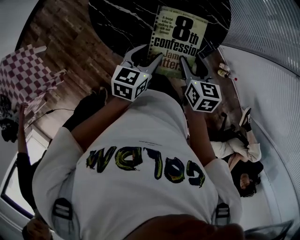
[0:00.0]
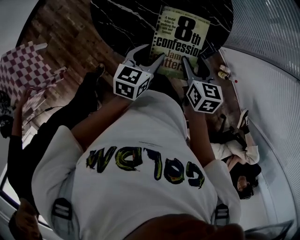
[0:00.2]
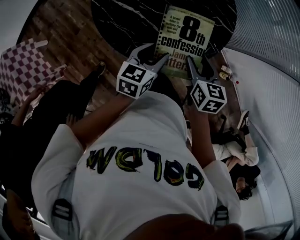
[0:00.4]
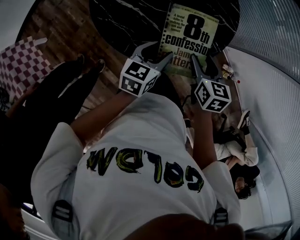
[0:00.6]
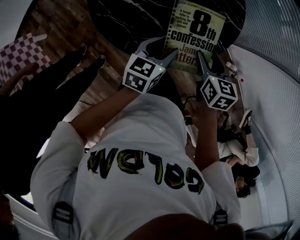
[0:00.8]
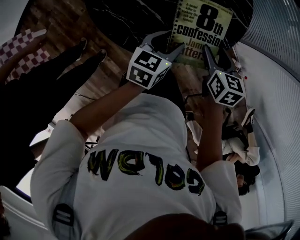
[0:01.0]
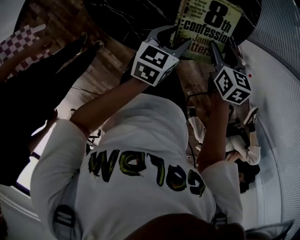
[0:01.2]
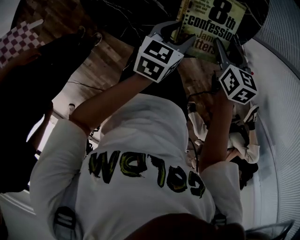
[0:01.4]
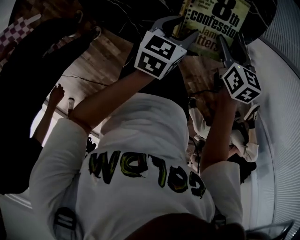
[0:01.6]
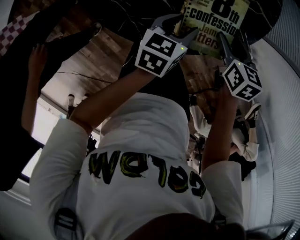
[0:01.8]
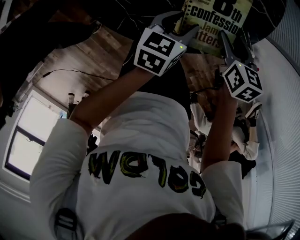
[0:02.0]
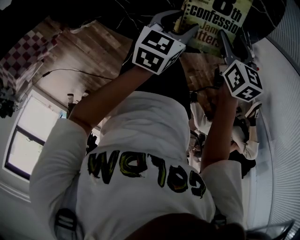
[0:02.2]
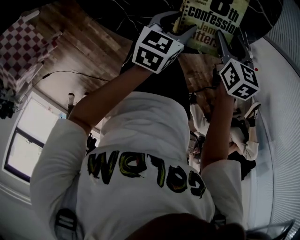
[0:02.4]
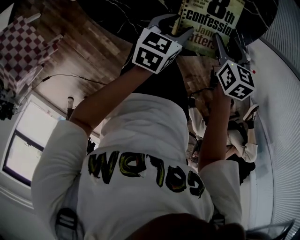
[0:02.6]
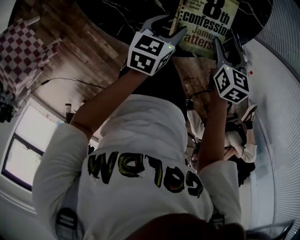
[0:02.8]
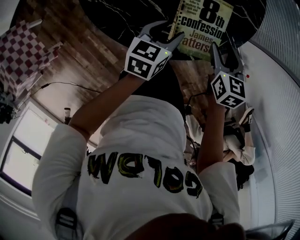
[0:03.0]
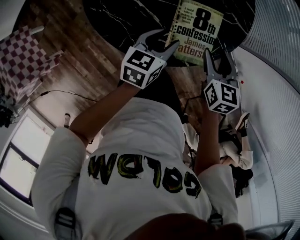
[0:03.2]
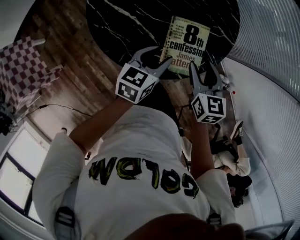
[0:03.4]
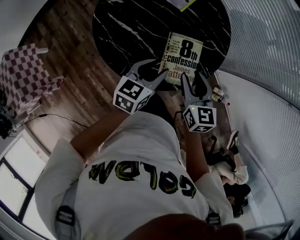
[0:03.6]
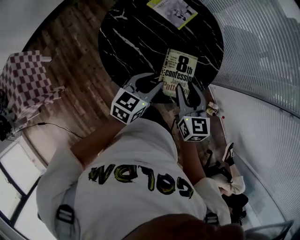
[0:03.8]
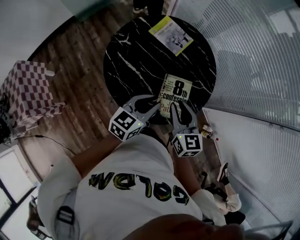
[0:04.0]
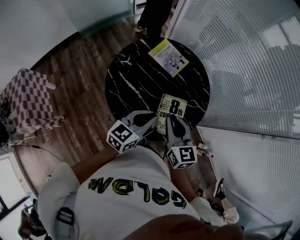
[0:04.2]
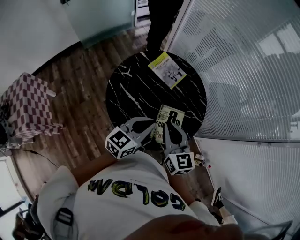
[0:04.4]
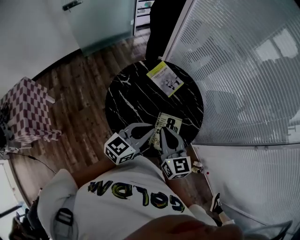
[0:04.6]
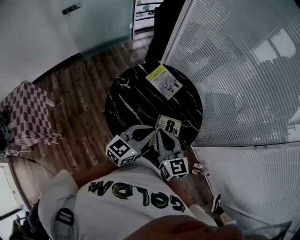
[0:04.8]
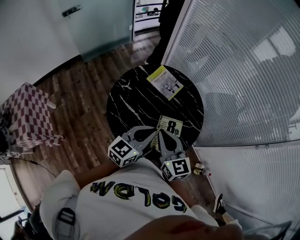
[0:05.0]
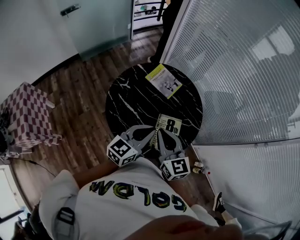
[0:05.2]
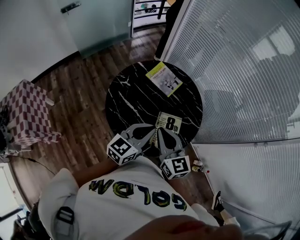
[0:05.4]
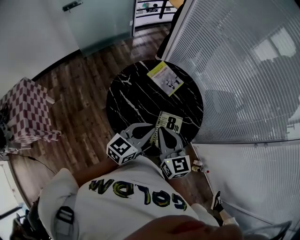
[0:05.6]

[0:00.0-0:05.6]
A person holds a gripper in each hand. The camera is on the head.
0:00.0 to 0:01.4: The grippers make only small movements.
0:01.4 to 0:02.8: The left gripper ends up some 5 cm from where it was.
0:02.8 to 0:04.2: The left gripper travels upward by roughly 30 cm, turns by about 30 degrees, and closes, while the right gripper is displaced upward and to the left by approximately 35 cm, tips its fingers upward by roughly 30 degrees, and closes its fingers.
0:04.2 to 0:05.6: Both grippers travel together upward, approximately 5 cm.

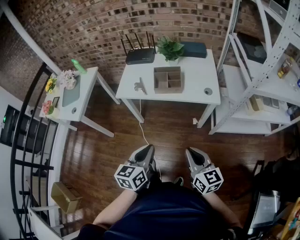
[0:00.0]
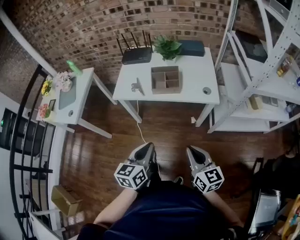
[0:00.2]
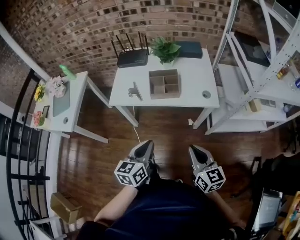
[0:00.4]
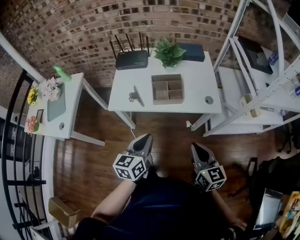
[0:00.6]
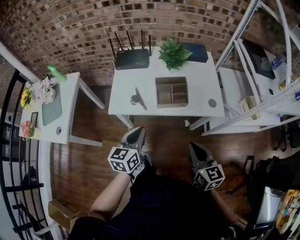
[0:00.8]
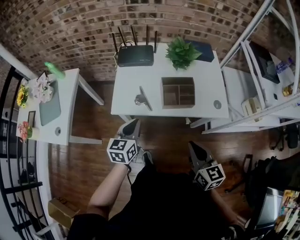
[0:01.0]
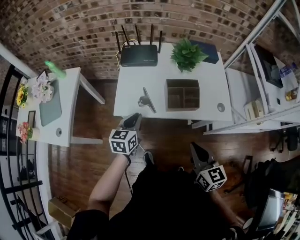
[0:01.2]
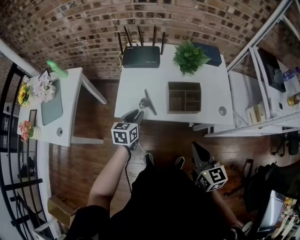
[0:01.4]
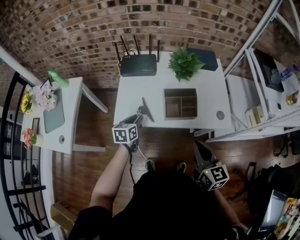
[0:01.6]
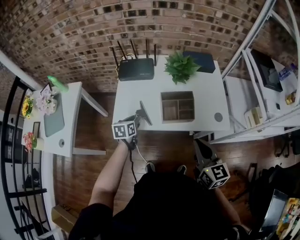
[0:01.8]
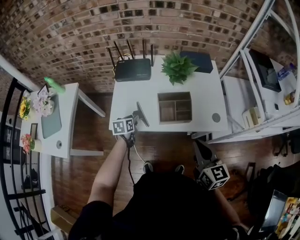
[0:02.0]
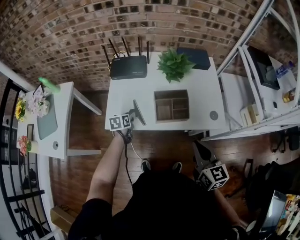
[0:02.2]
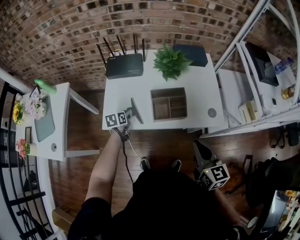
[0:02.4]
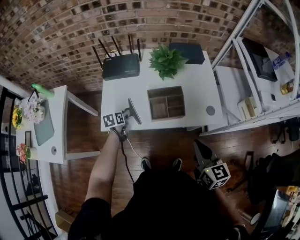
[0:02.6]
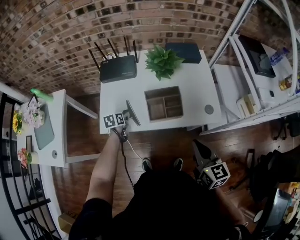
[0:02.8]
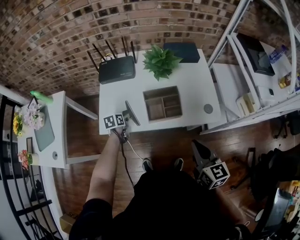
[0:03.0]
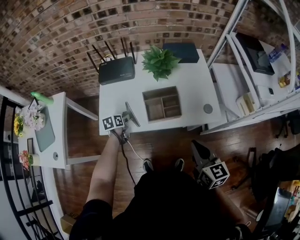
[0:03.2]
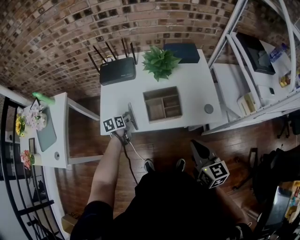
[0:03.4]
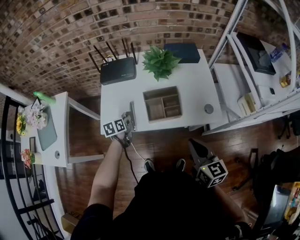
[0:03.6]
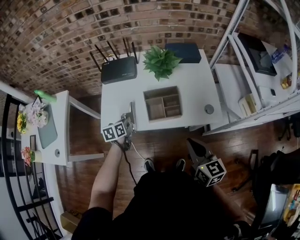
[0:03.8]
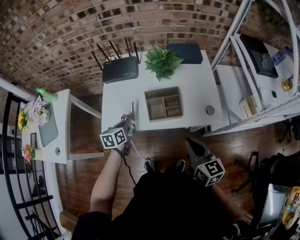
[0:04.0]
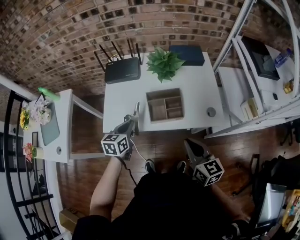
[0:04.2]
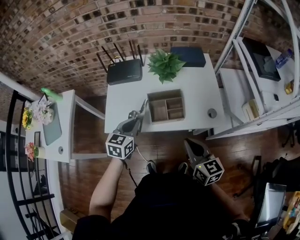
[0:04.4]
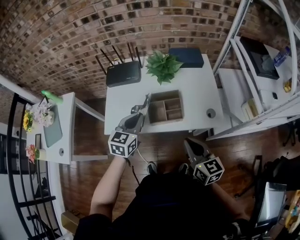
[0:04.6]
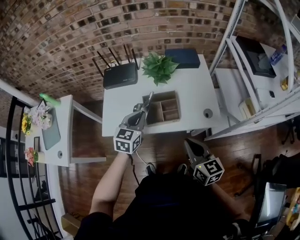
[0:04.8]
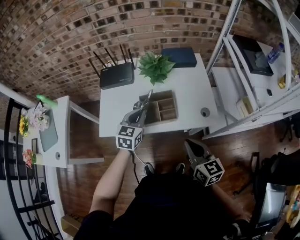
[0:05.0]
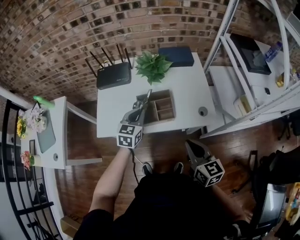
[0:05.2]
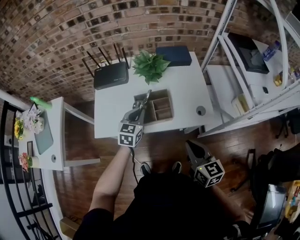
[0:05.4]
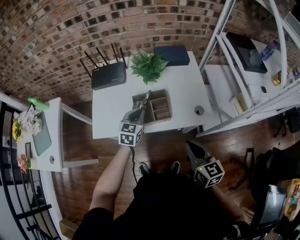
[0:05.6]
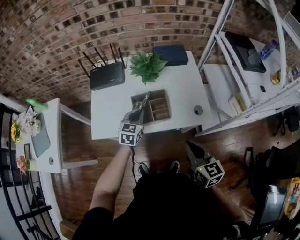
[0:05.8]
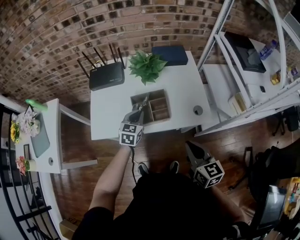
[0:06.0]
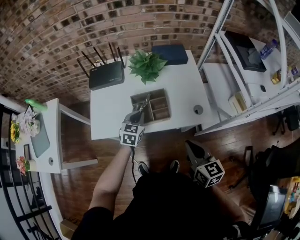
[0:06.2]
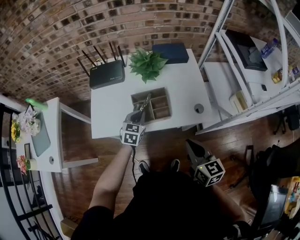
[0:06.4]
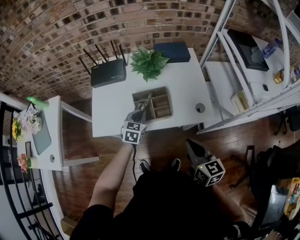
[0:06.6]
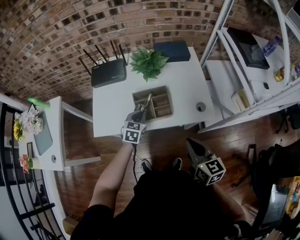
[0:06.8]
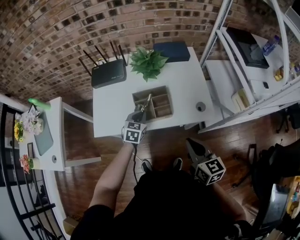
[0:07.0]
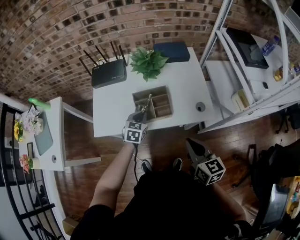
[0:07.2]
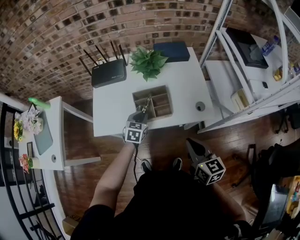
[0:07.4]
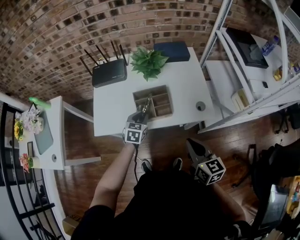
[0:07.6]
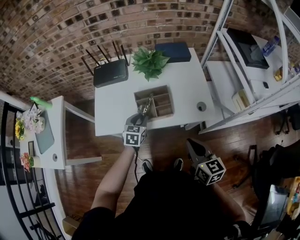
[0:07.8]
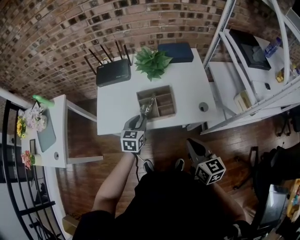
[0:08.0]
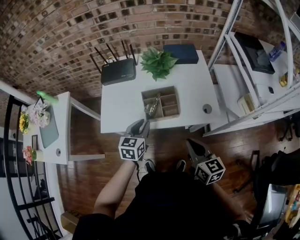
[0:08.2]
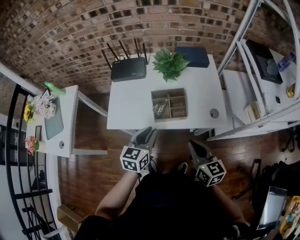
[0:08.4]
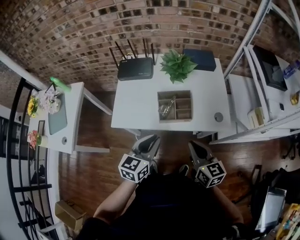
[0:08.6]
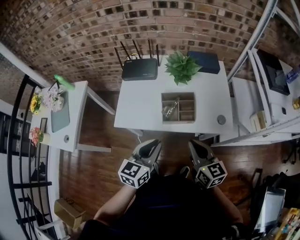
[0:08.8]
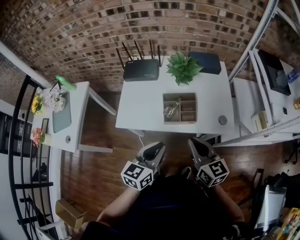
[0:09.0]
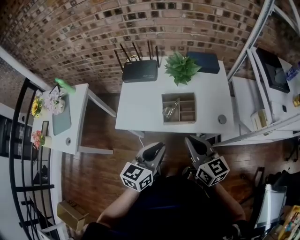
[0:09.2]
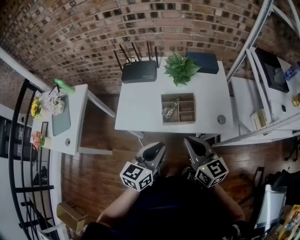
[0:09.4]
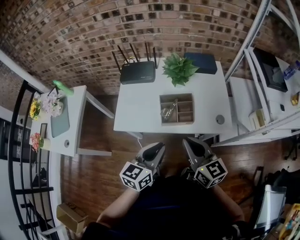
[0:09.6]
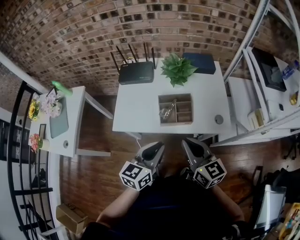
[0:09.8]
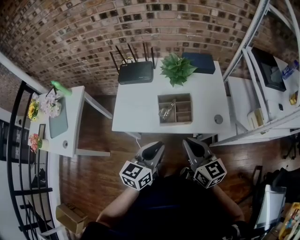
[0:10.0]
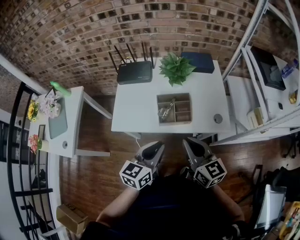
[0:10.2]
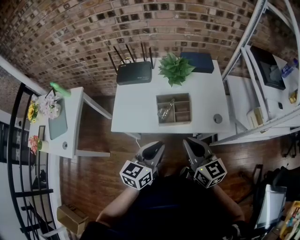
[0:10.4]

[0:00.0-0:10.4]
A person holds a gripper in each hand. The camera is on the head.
0:00.0 to 0:01.4: The right gripper heads forward and to the left, covering approximately 25 cm. The left gripper moves forward and to the left, approximately 40 cm, and opens.
0:01.4 to 0:03.0: The left gripper travels downward and forward by approximately 15 cm, and swivels roughly 30 degrees; the right gripper heads to the right, covering about 10 cm.
0:03.0 to 0:04.4: The left gripper goes approximately 20 cm upward and to the right, swivels some 40 degrees, and closes its fingers.
0:04.4 to 0:06.0: The left gripper heads to the right, downward and forward, covering roughly 15 cm, while the right gripper is displaced to the right by approximately 5 cm.
0:06.0 to 0:07.4: The grippers move only a little.
0:07.4 to 0:09.0: The right gripper heads to the left, covering roughly 10 cm. Meanwhile the left gripper moves upward and backward, about 25 cm, and changes its angle by some 30 degrees.
0:09.0 to 0:10.4: There are only small adjustments of the grippers.

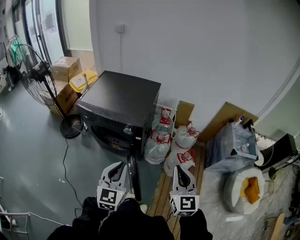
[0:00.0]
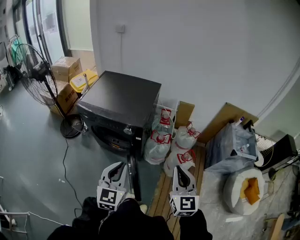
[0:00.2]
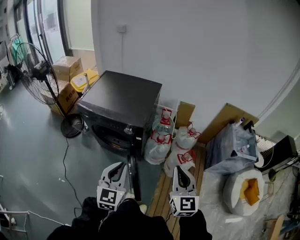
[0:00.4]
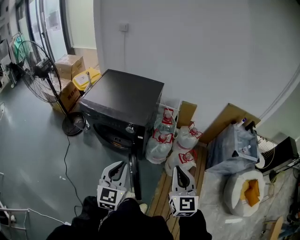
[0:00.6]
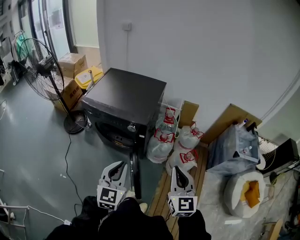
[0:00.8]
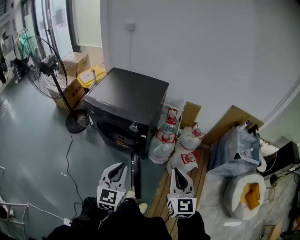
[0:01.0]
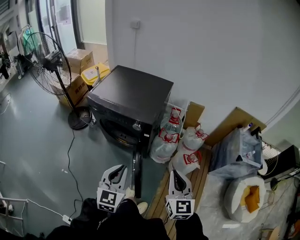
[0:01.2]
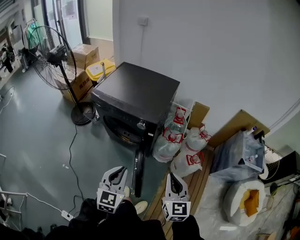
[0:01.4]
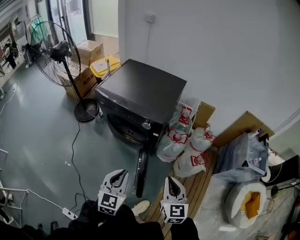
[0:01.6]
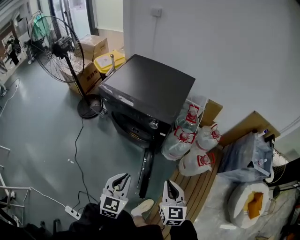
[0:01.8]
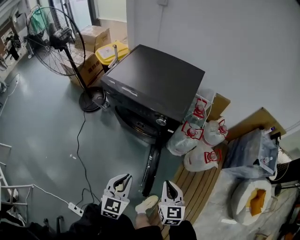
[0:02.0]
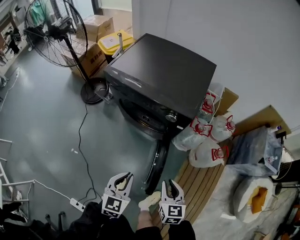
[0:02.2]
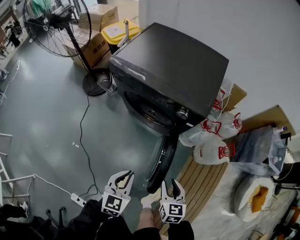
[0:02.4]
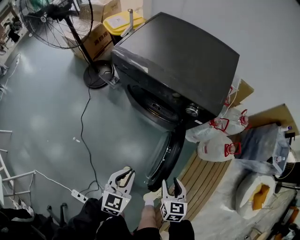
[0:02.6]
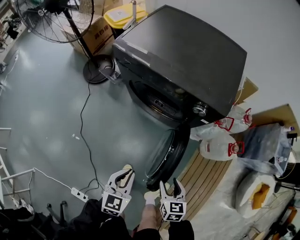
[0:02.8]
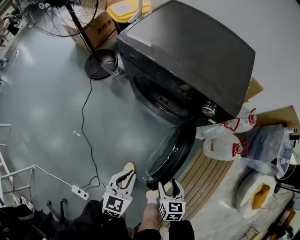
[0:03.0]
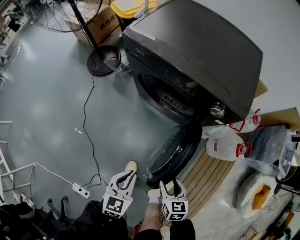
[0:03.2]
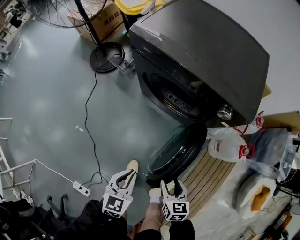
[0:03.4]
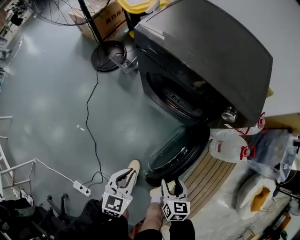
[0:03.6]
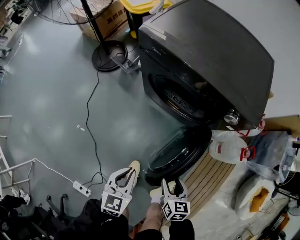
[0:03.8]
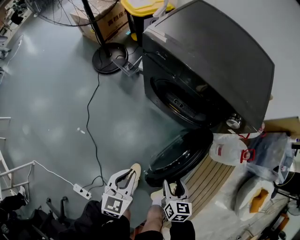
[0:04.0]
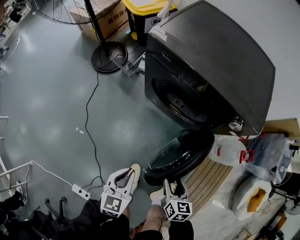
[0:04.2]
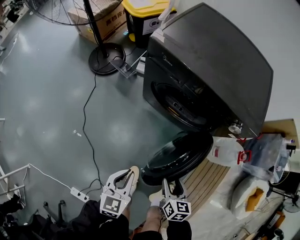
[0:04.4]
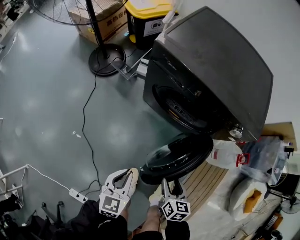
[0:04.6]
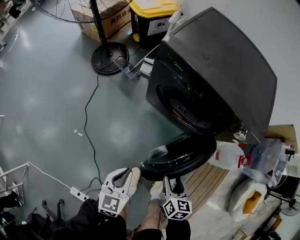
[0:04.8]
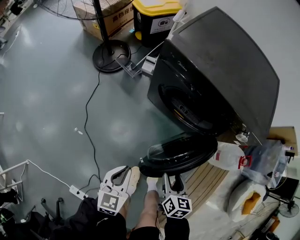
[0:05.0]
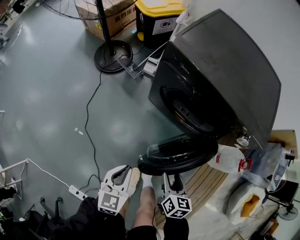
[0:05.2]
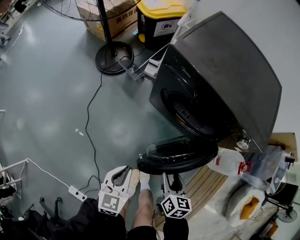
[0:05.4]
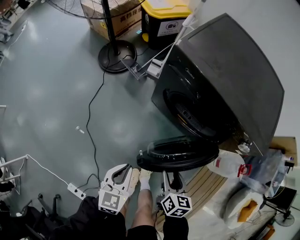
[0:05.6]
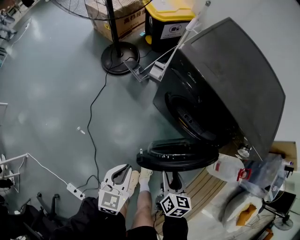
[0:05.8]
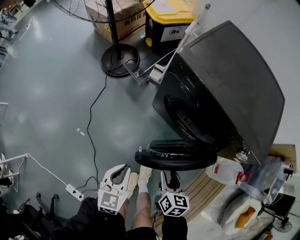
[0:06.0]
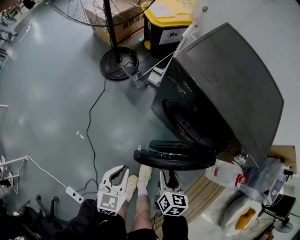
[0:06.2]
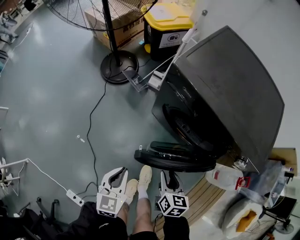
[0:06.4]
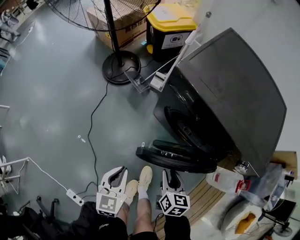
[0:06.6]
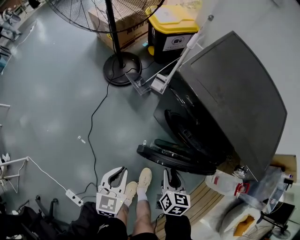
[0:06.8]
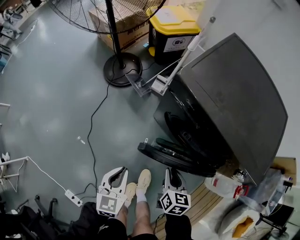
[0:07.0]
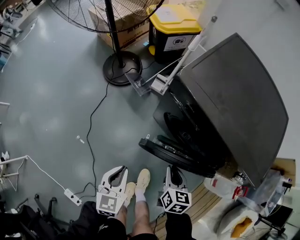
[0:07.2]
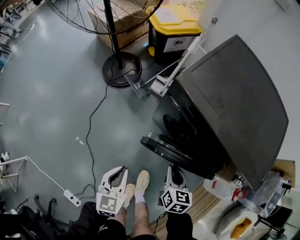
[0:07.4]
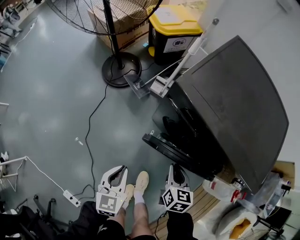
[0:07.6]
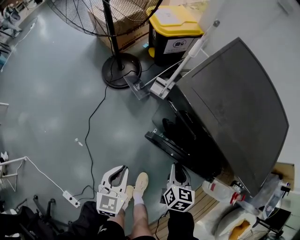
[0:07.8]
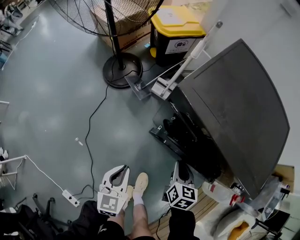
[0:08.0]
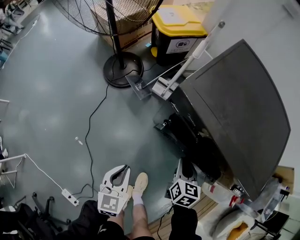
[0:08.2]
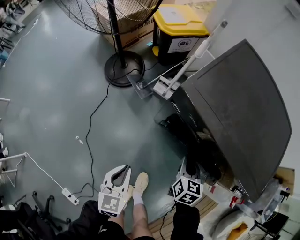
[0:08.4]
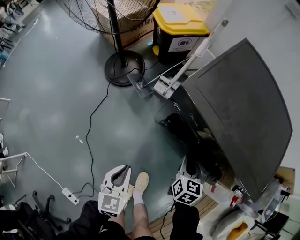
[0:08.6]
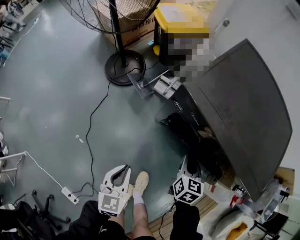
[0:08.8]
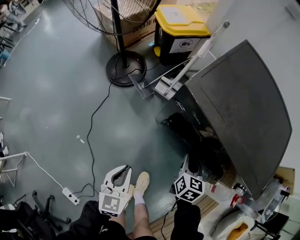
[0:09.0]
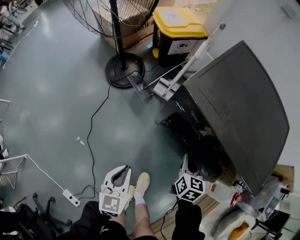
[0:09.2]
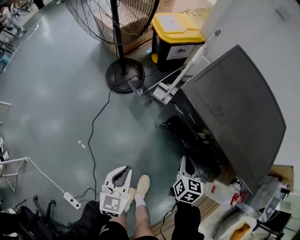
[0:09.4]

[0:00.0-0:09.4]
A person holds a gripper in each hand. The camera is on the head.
0:00.0 to 0:01.6: Both grippers travel together downward and to the left, about 10 cm.
0:01.6 to 0:03.2: The two grippers go roughly 40 cm downward and to the left. The right gripper turns by approximately 40 degrees, and opens its fingers. The left gripper swivels some 20 degrees.
0:03.2 to 0:04.8: The right gripper moves to the left and forward, some 15 cm. The left gripper is displaced to the left by approximately 15 cm.
0:04.8 to 0:06.2: The right gripper heads forward and to the left, covering about 10 cm. Meanwhile the left gripper is displaced forward by some 5 cm.
0:06.2 to 0:07.8: Both grippers travel together forward, roughly 15 cm. The right gripper closes.
0:07.8 to 0:09.4: The grippers move only a little.
